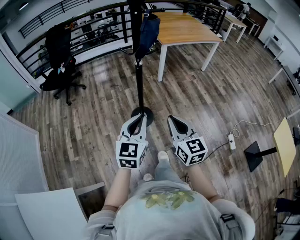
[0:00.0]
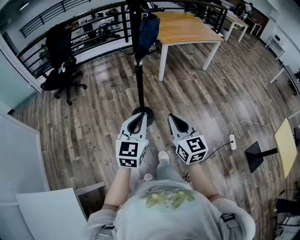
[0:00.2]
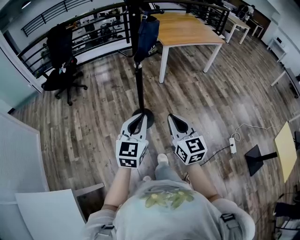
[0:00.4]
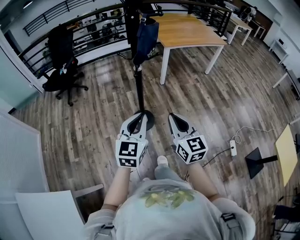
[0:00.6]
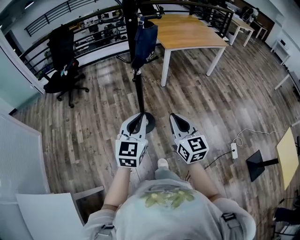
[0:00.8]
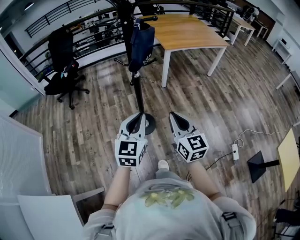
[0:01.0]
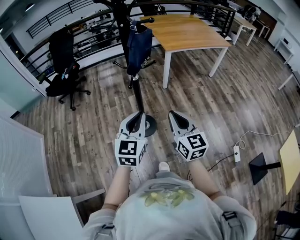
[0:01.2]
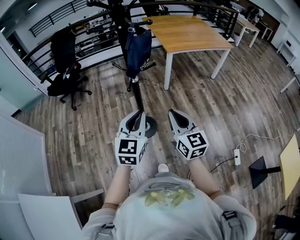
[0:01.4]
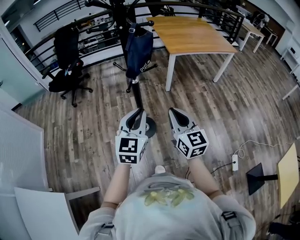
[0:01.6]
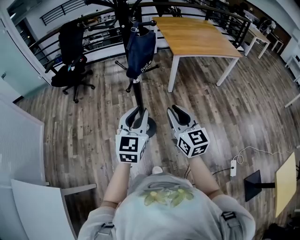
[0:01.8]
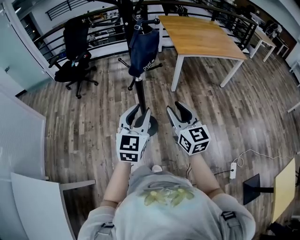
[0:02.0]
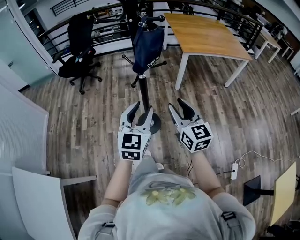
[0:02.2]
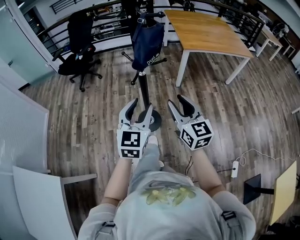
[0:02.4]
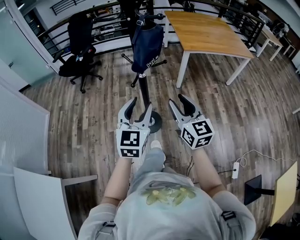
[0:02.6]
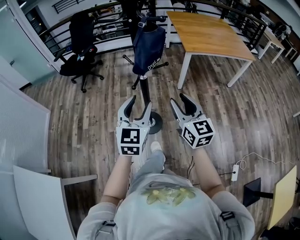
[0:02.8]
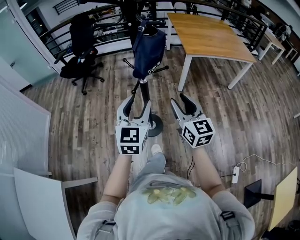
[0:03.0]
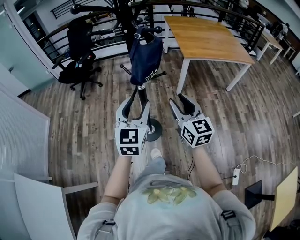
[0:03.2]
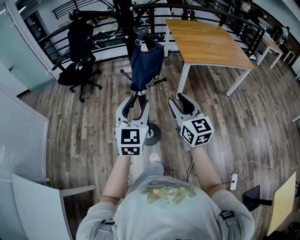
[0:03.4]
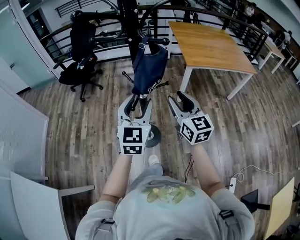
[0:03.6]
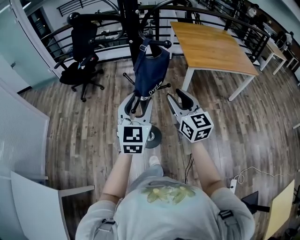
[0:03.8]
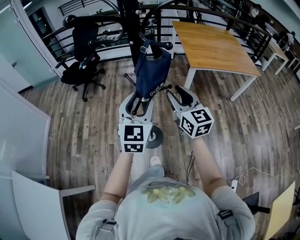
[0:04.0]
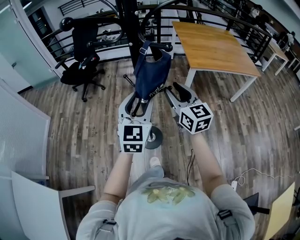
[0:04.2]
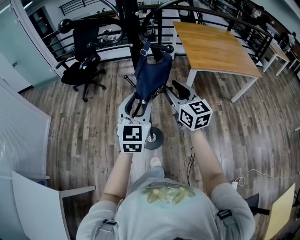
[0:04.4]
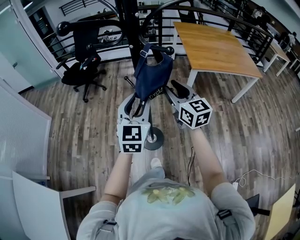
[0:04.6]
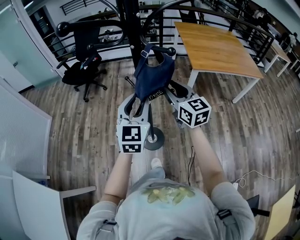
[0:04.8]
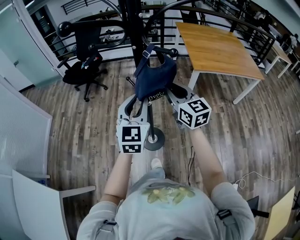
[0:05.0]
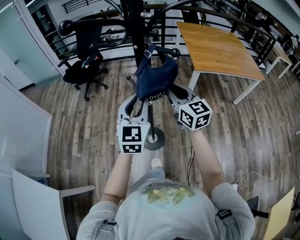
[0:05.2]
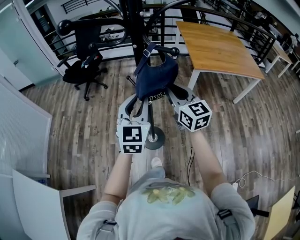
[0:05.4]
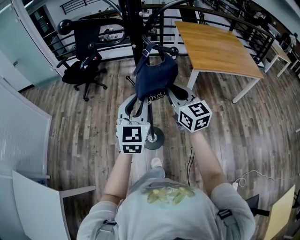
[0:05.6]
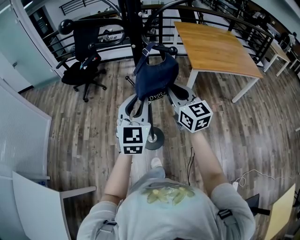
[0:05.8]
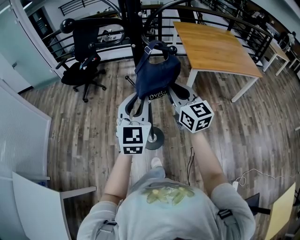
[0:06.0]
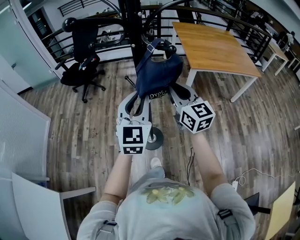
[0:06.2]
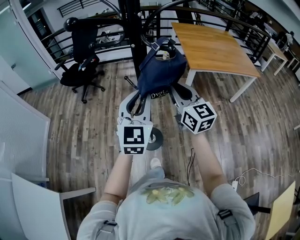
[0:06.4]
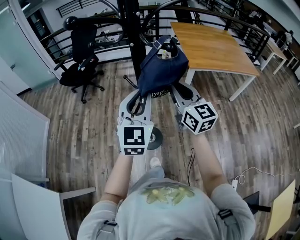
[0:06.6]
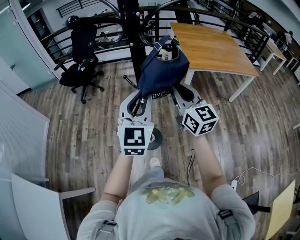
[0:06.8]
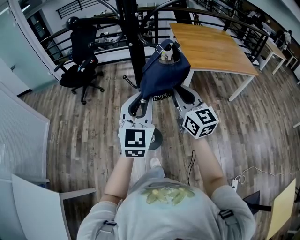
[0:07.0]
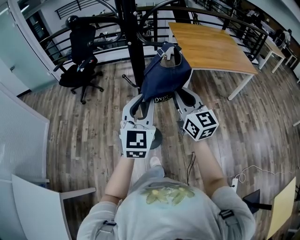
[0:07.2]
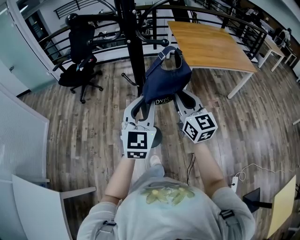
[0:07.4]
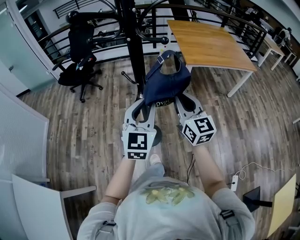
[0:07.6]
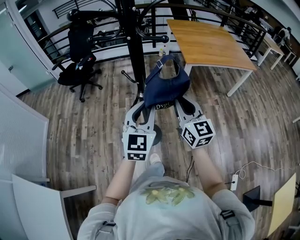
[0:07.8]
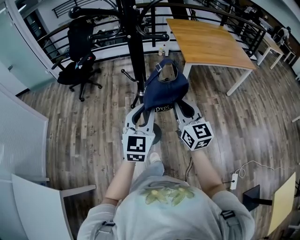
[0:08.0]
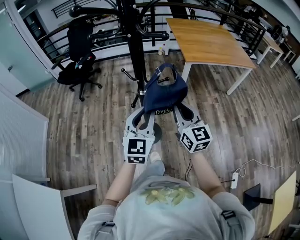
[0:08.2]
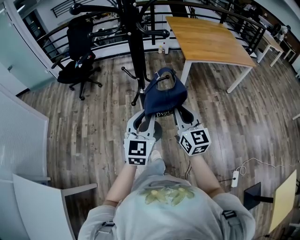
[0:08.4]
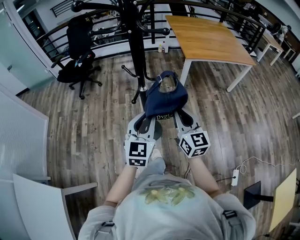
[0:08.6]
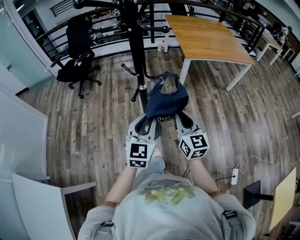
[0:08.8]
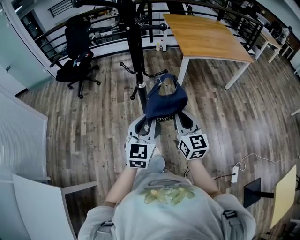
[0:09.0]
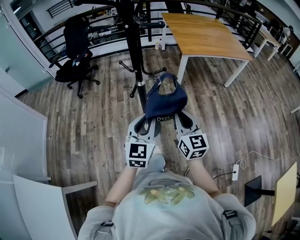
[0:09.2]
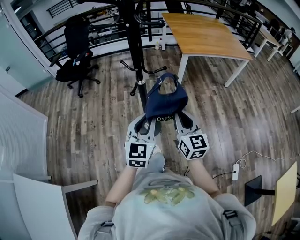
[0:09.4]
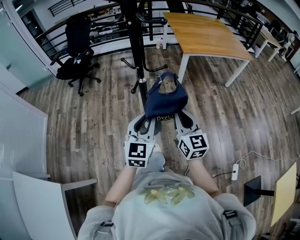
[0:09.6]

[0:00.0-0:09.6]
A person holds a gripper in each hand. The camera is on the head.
0:00.0 to 0:01.6: The two grippers go some 20 cm forward and to the right.
0:01.6 to 0:03.2: Both grippers travel together forward, approximately 10 cm. The left gripper opens its fingers. Meanwhile the right gripper opens up.
0:03.2 to 0:04.8: The left gripper goes roughly 10 cm forward, while the right gripper heads forward, covering some 15 cm.
0:04.8 to 0:06.4: The right gripper closes its fingers.
0:06.4 to 0:08.0: The two grippers go roughly 10 cm backward and downward.
0:08.0 to 0:09.6: The two grippers go roughly 10 cm backward and downward.

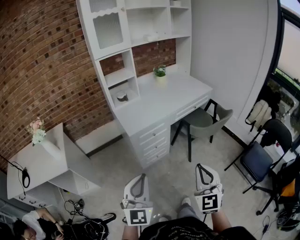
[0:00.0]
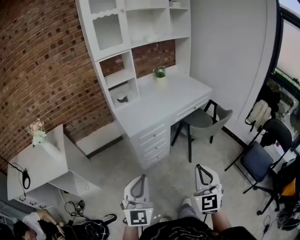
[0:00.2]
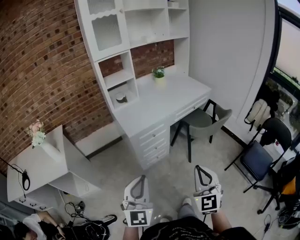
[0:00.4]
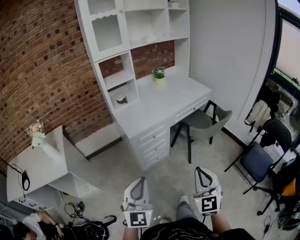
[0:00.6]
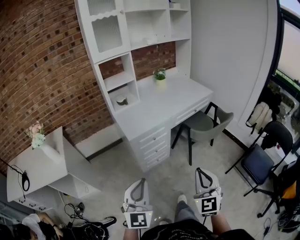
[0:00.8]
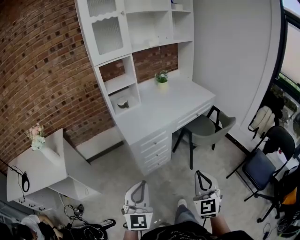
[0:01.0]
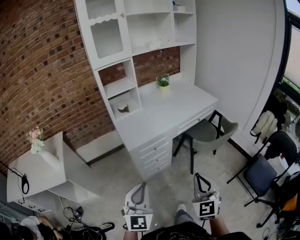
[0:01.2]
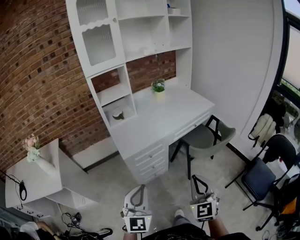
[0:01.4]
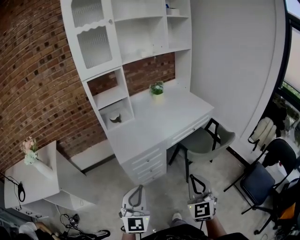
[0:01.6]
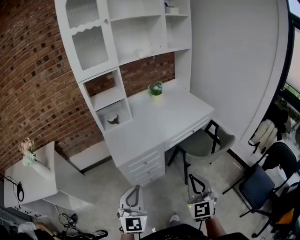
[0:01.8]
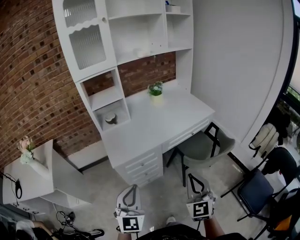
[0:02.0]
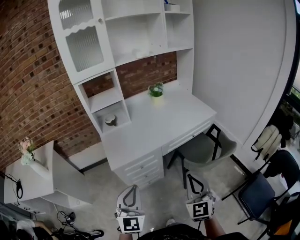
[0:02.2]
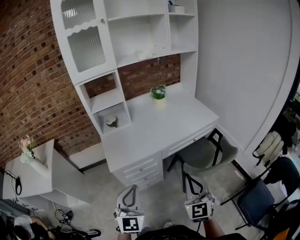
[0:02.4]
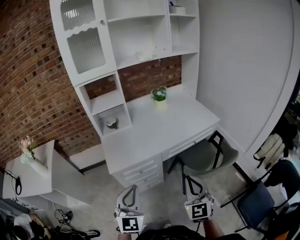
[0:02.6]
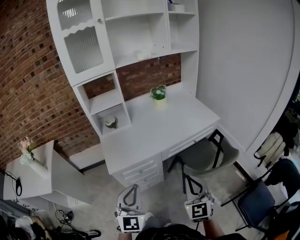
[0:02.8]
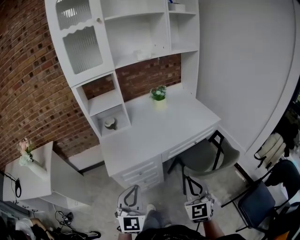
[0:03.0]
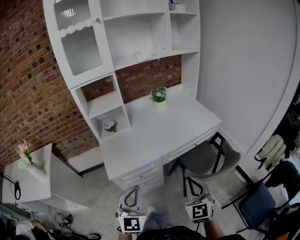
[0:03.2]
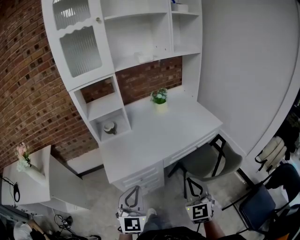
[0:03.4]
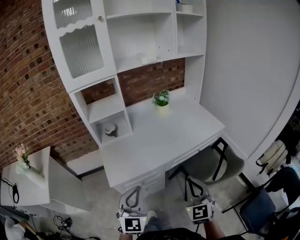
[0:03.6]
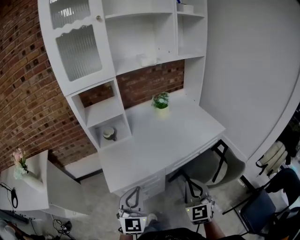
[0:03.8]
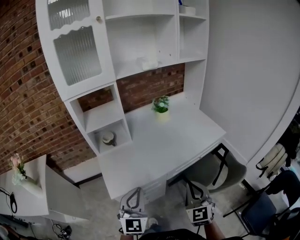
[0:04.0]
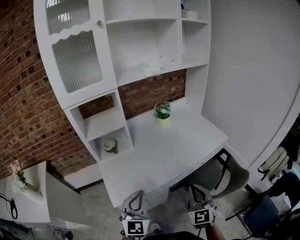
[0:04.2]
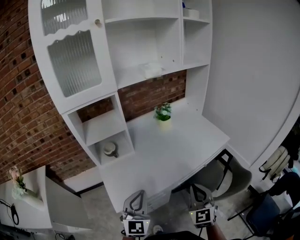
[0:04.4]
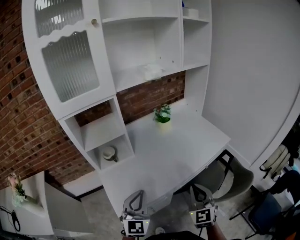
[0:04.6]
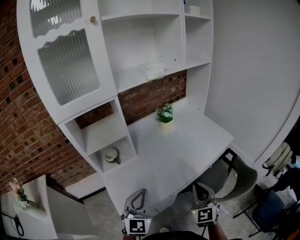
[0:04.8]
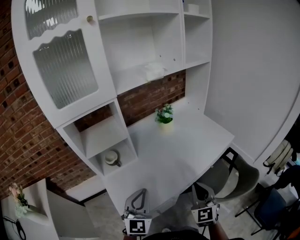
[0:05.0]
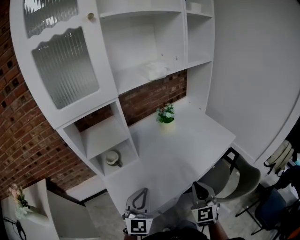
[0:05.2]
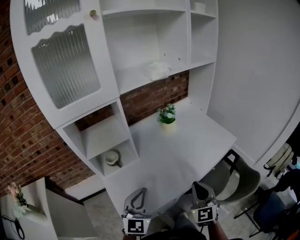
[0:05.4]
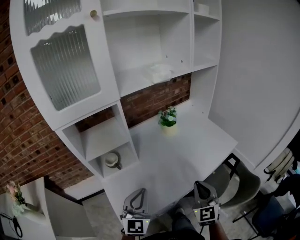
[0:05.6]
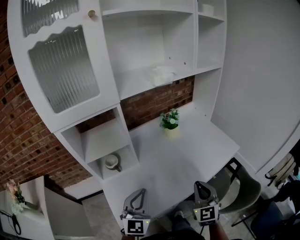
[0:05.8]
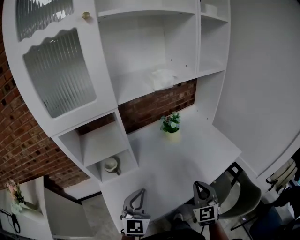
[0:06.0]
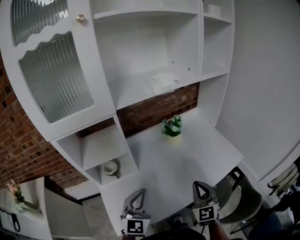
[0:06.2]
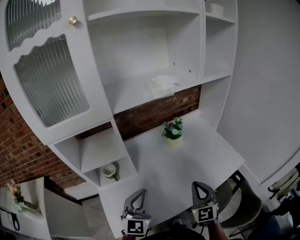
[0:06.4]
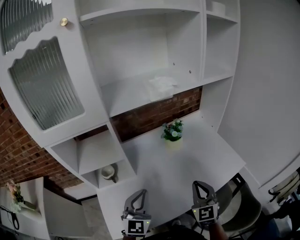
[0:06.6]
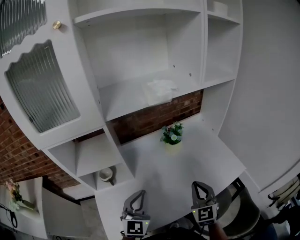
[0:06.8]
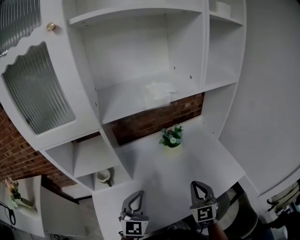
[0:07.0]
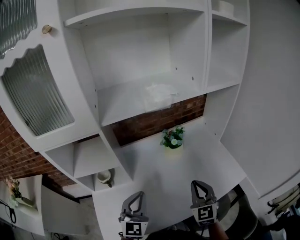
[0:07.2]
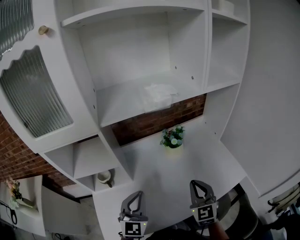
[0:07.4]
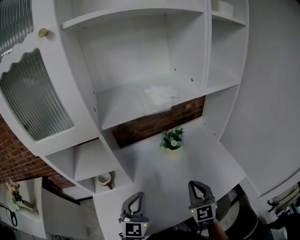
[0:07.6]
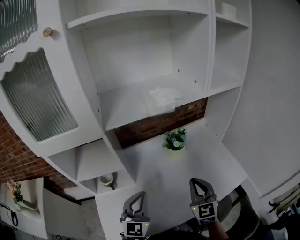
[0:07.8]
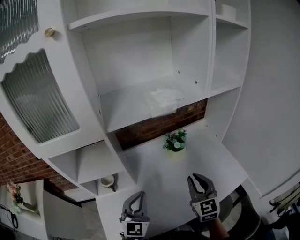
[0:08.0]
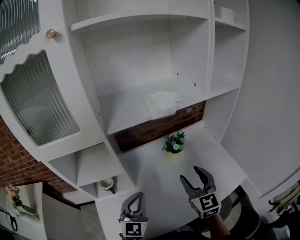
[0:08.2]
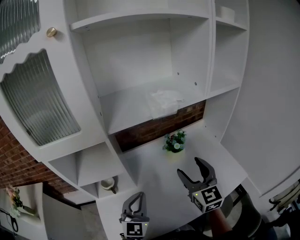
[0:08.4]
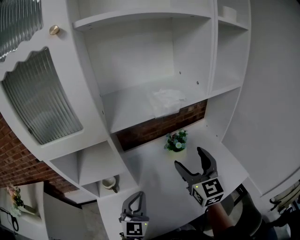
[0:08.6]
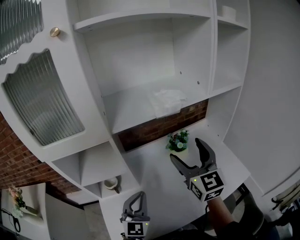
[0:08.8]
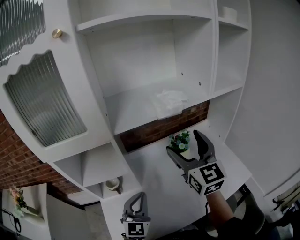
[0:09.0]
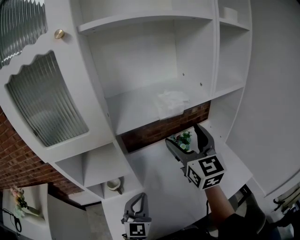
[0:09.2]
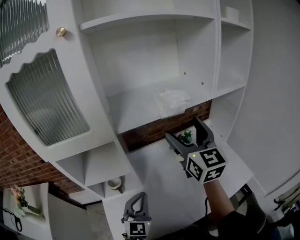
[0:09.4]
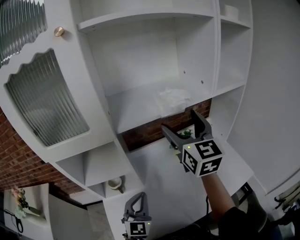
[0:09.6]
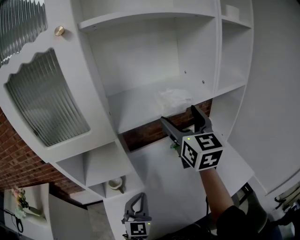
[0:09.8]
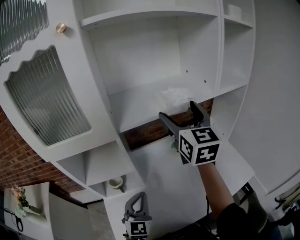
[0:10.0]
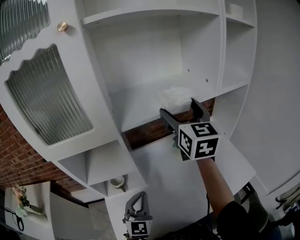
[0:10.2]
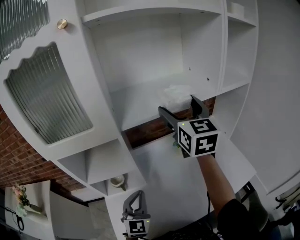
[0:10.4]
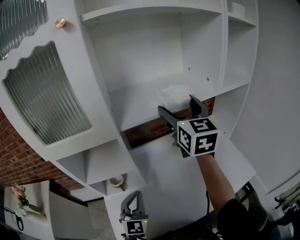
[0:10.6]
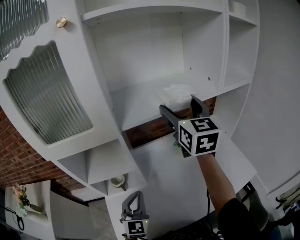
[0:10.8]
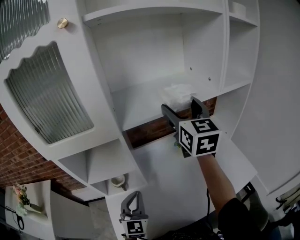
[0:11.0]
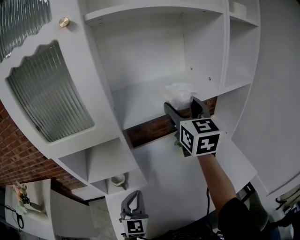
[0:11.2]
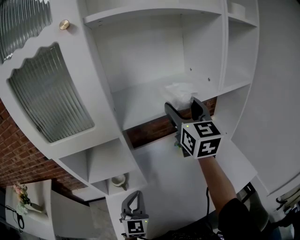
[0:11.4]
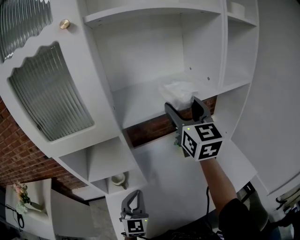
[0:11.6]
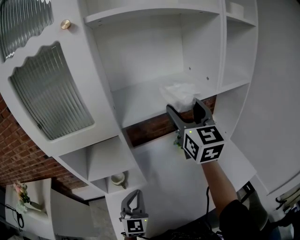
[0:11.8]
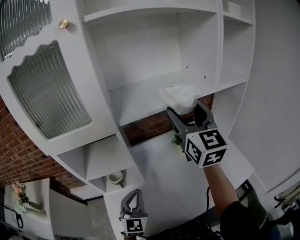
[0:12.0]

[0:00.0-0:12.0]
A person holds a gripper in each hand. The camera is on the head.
0:00.0 to 0:01.6: Both grippers move forward, about 15 cm.
0:01.6 to 0:03.0: The two grippers go roughly 15 cm forward and to the right.
0:03.0 to 0:04.4: Both grippers travel together forward, approximately 20 cm.
0:04.4 to 0:06.0: Both grippers move forward, about 15 cm.
0:06.0 to 0:07.6: Both grippers move forward, some 10 cm.
0:07.6 to 0:09.0: The right gripper is displaced upward and forward by roughly 25 cm, turns by about 20 degrees, and opens up.
0:09.0 to 0:10.4: The right gripper shifts some 10 cm forward and upward.
0:10.4 to 0:12.0: The right gripper moves roughly 5 cm.

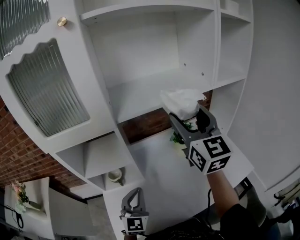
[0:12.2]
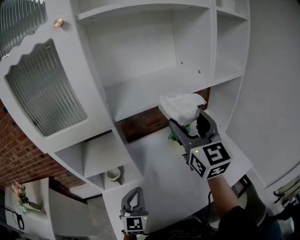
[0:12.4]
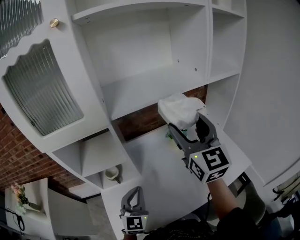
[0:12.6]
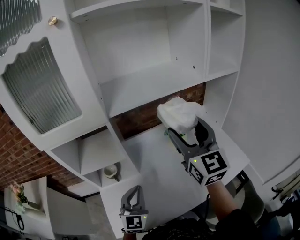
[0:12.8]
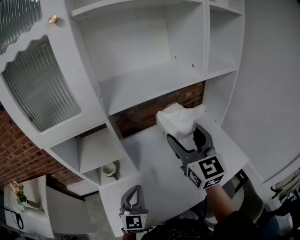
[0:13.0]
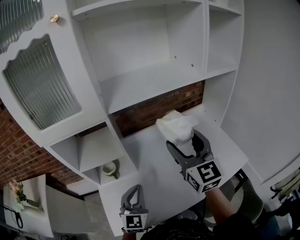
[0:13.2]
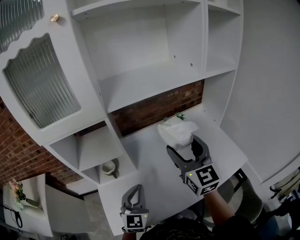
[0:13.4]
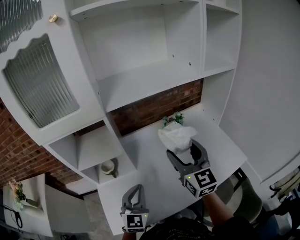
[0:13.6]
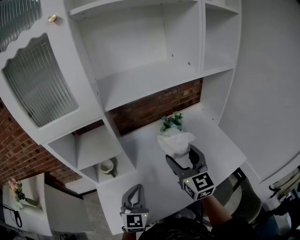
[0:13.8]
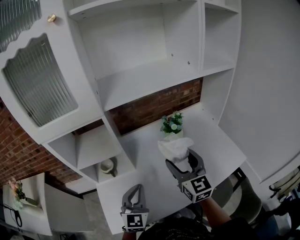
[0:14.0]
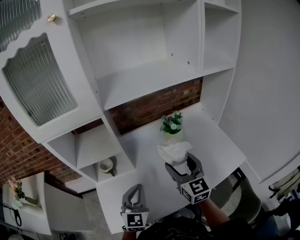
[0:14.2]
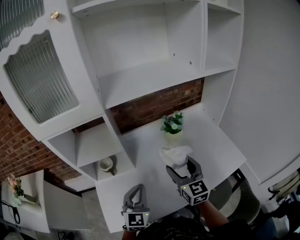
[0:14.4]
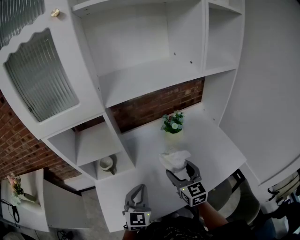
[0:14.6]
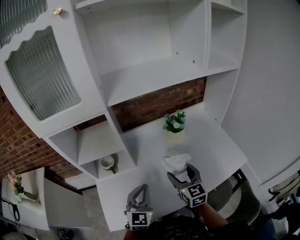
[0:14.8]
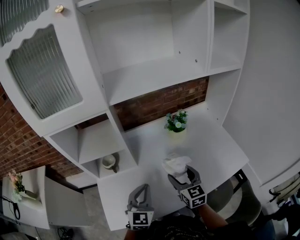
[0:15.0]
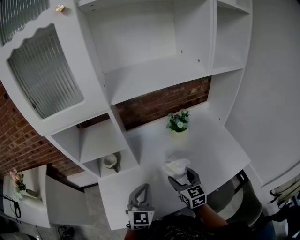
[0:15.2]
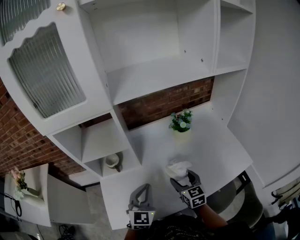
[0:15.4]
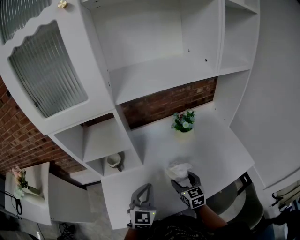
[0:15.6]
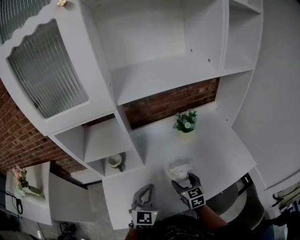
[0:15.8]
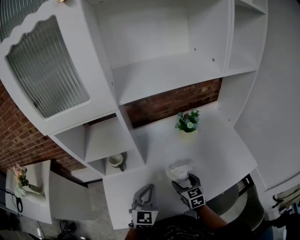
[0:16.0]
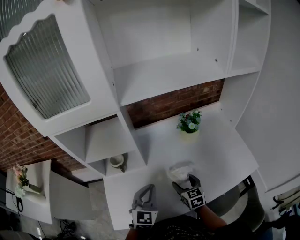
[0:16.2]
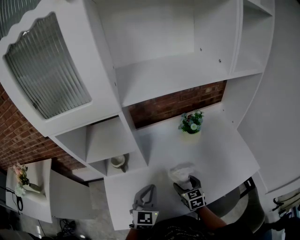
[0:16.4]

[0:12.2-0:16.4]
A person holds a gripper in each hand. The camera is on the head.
0:12.2 to 0:13.6: The right gripper travels downward and backward by some 15 cm.
0:13.6 to 0:15.0: The right gripper is displaced downward by some 20 cm.
0:15.0 to 0:16.4: The right gripper travels downward by roughly 10 cm.
